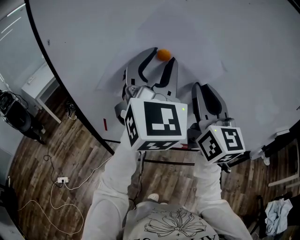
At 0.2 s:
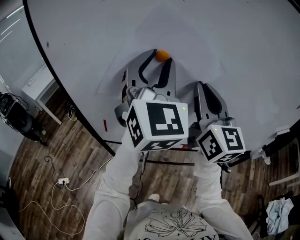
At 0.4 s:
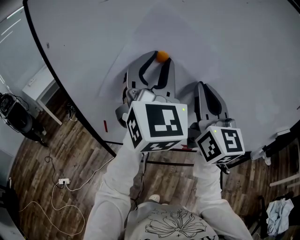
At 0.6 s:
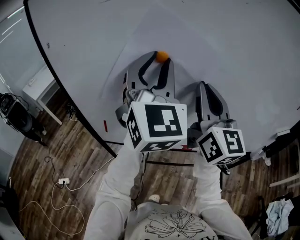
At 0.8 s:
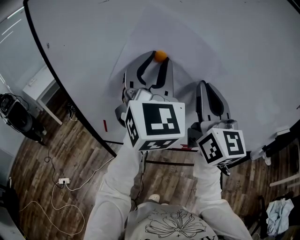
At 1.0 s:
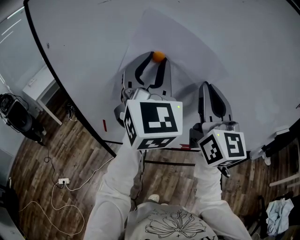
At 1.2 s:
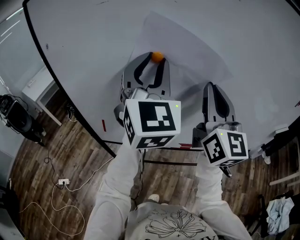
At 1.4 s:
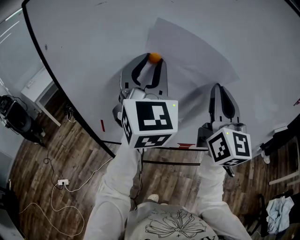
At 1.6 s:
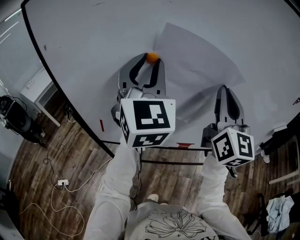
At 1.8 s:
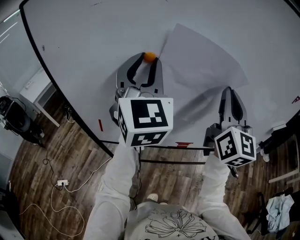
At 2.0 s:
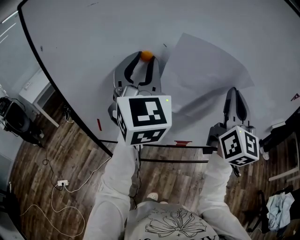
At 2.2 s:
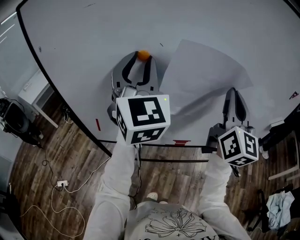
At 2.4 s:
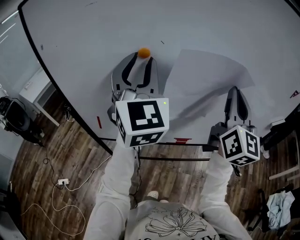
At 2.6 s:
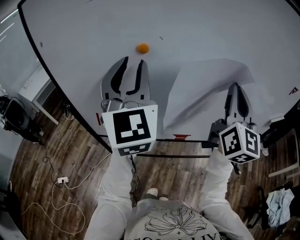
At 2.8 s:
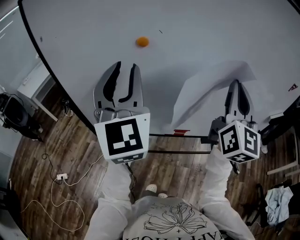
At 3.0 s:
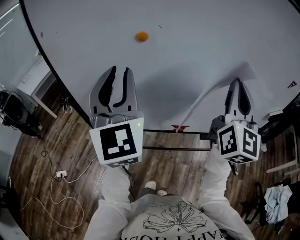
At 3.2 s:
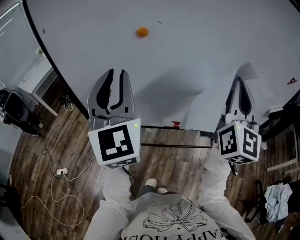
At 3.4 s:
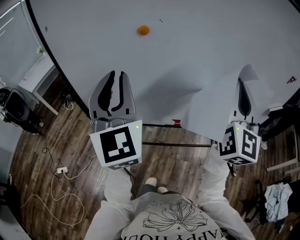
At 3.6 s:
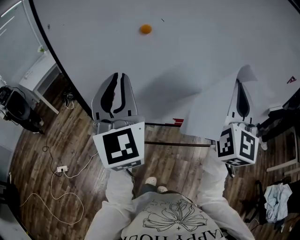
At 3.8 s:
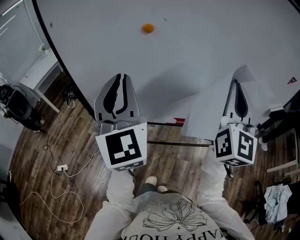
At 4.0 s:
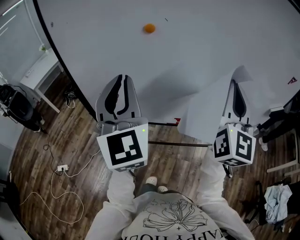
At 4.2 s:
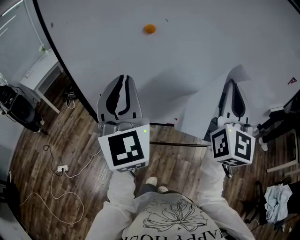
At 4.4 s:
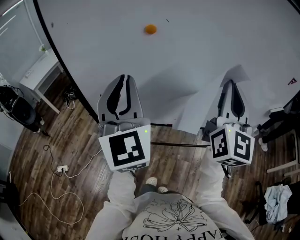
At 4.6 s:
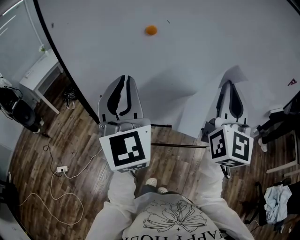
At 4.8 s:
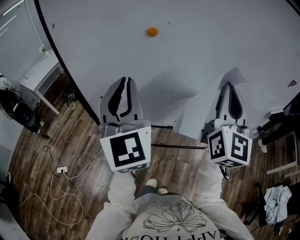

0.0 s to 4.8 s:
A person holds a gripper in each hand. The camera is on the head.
0.0 to 1.6 s: The right gripper moves to the right, approximately 10 cm.
1.6 to 3.2 s: The left gripper travels backward by roughly 10 cm, while the right gripper shifts some 10 cm backward and to the right.
3.2 to 4.8 s: The grippers stay close to where they were, moving slightly.

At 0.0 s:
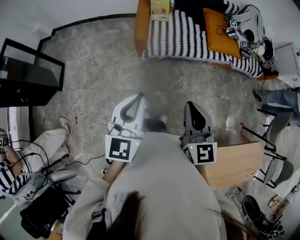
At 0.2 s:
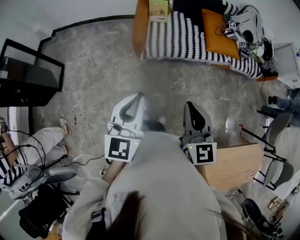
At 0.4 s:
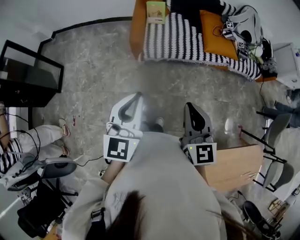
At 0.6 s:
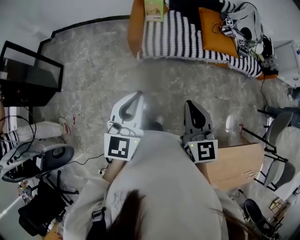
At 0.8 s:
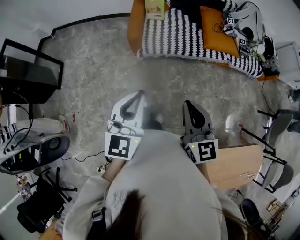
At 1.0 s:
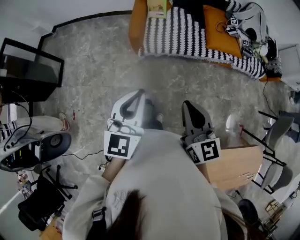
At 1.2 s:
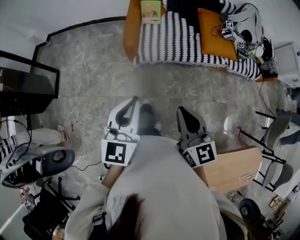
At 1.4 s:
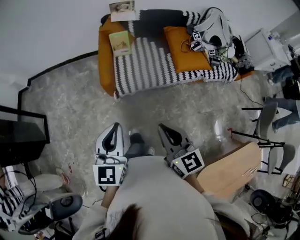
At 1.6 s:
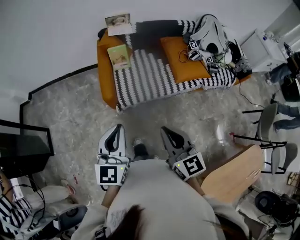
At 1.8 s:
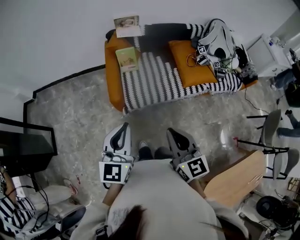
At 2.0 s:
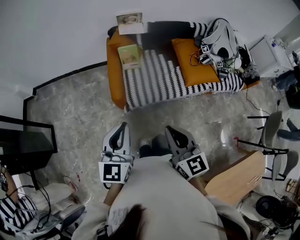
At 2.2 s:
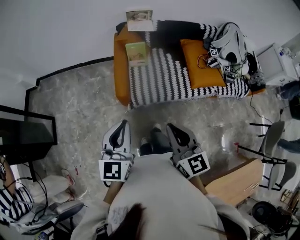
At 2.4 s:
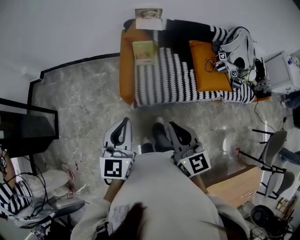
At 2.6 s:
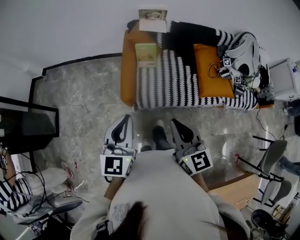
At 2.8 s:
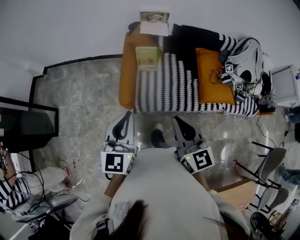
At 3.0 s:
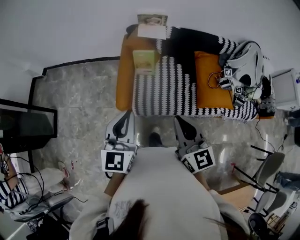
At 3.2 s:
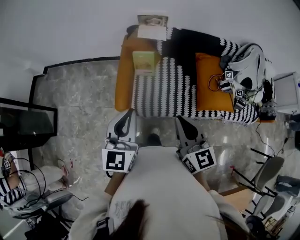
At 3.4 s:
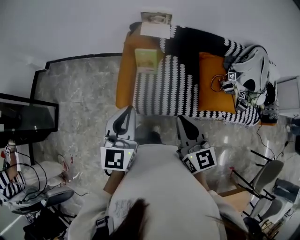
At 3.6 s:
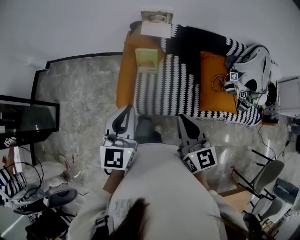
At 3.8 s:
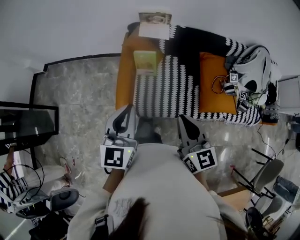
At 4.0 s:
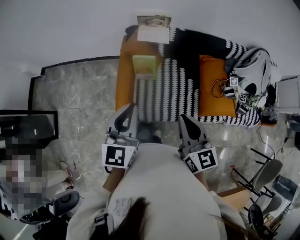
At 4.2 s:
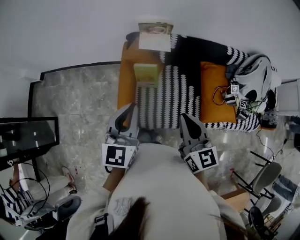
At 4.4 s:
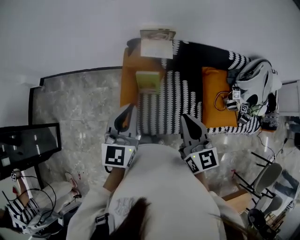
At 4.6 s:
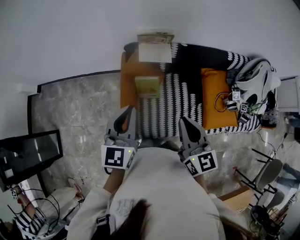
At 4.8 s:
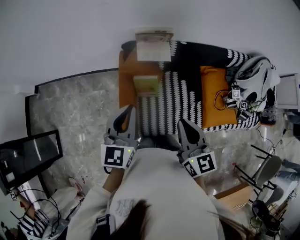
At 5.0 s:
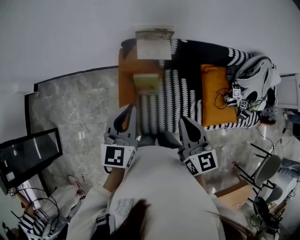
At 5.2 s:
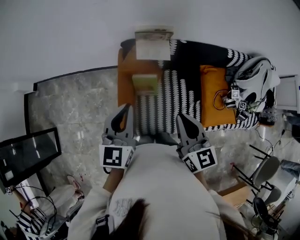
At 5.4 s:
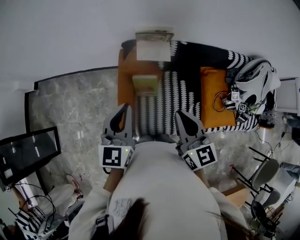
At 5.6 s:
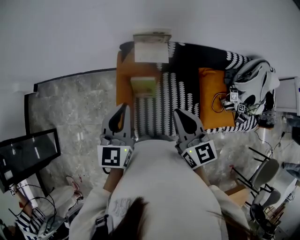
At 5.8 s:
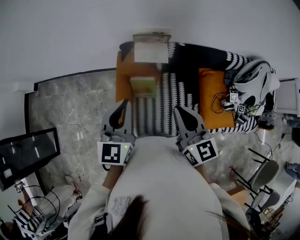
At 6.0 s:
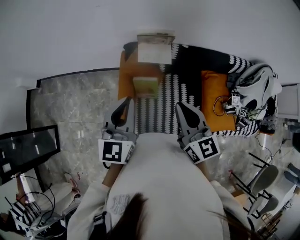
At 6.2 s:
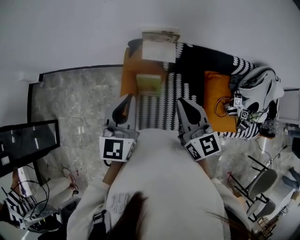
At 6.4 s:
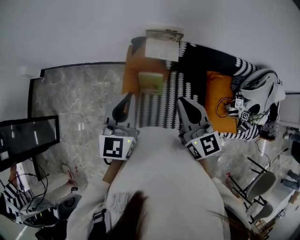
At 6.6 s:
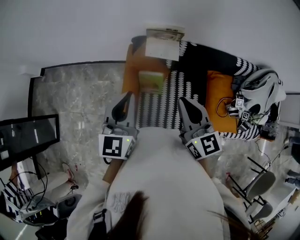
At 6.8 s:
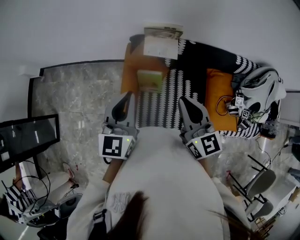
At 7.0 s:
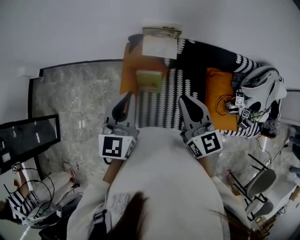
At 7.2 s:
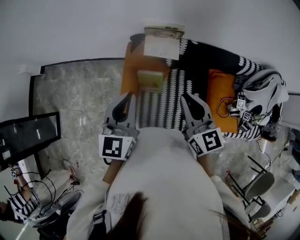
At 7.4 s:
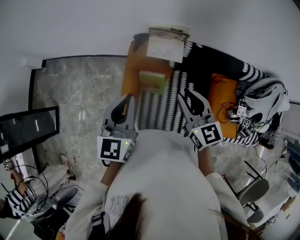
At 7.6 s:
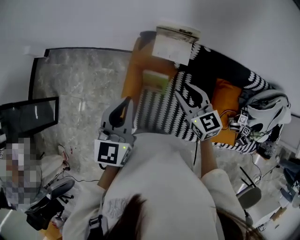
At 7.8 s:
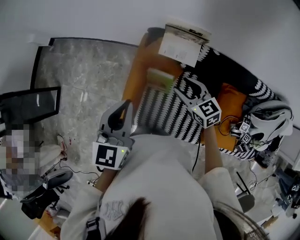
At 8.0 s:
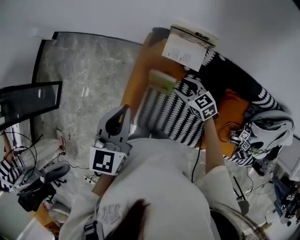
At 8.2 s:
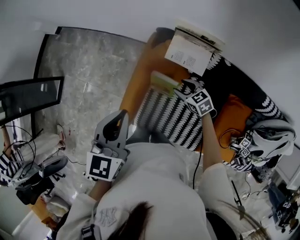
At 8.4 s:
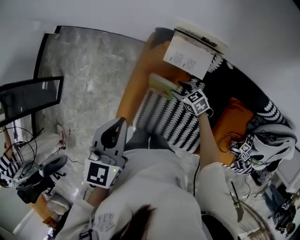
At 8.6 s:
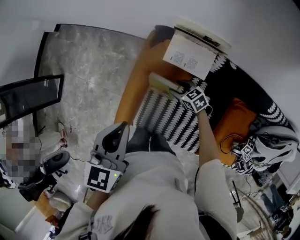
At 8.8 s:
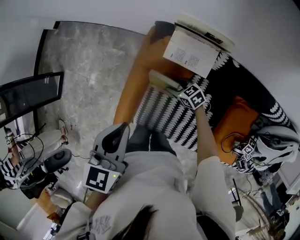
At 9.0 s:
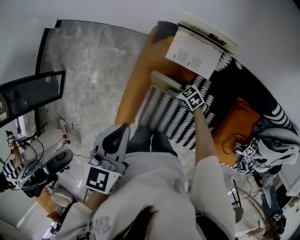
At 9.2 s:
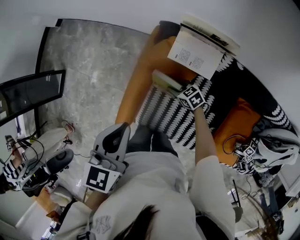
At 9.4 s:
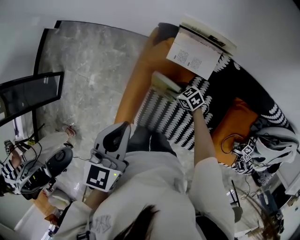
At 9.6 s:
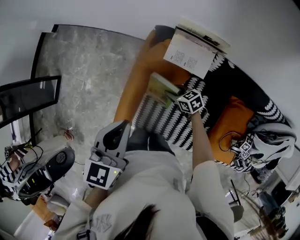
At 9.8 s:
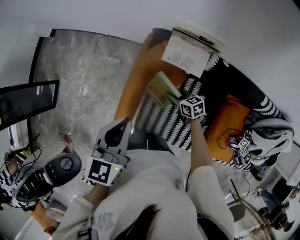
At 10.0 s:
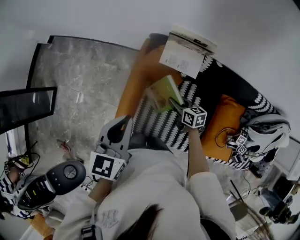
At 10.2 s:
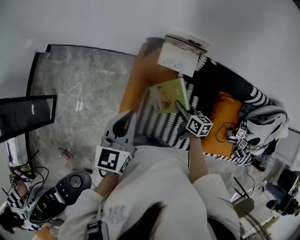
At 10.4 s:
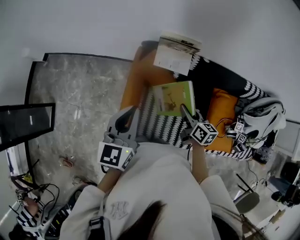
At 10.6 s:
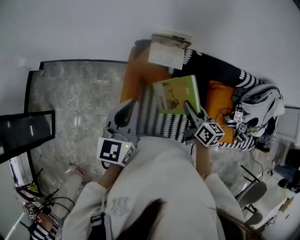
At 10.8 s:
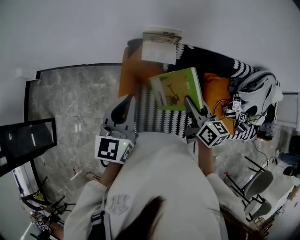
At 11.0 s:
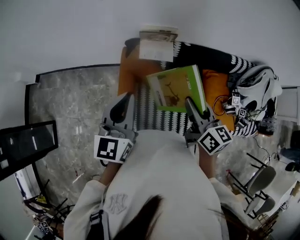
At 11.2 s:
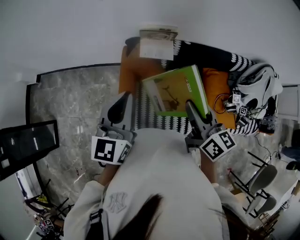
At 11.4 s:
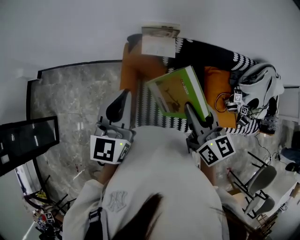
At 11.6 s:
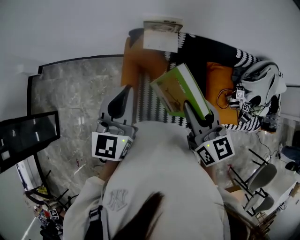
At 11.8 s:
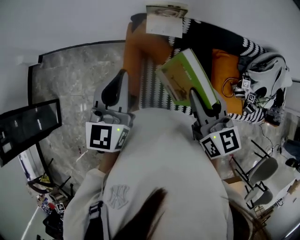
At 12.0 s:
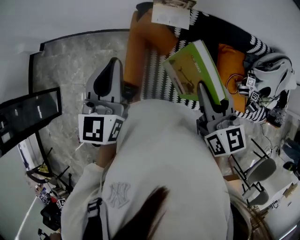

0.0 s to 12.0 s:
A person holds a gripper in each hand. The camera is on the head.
0.0 to 1.6 s: Both grippers move forward, approximately 15 cm.
1.6 to 3.0 s: The two grippers go roughly 25 cm forward.
3.0 to 4.4 s: Both grippers move forward, some 25 cm.
4.4 to 6.0 s: Both grippers move forward, roughly 10 cm.
6.0 to 7.6 s: The left gripper changes place by some 5 cm; the right gripper moves forward and downward, about 15 cm, rotates some 20 degrees, and opens.
7.6 to 9.0 s: The left gripper travels downward by approximately 10 cm, and turns by some 20 degrees; the right gripper heads downward, covering roughly 35 cm, and turns by about 40 degrees.
9.0 to 10.4 s: The left gripper moves upward, about 5 cm, and rotates about 20 degrees. The right gripper is displaced upward by some 25 cm, and swivels approximately 60 degrees.
10.4 to 12.0 s: The left gripper moves upward, some 5 cm. The right gripper moves upward and backward, roughly 25 cm, and turns by roughly 30 degrees.

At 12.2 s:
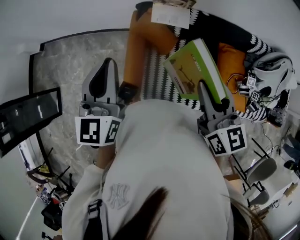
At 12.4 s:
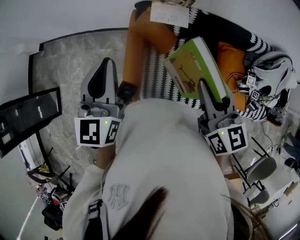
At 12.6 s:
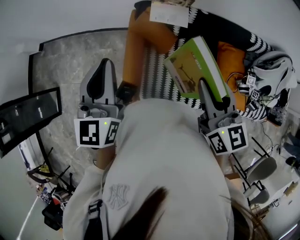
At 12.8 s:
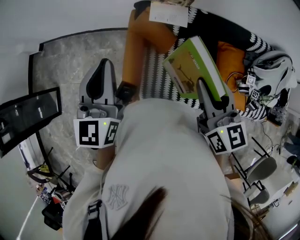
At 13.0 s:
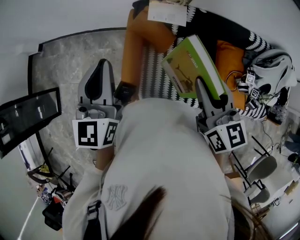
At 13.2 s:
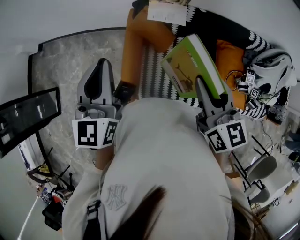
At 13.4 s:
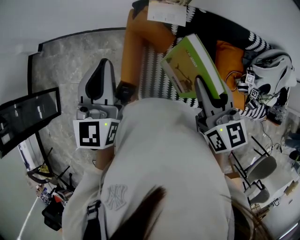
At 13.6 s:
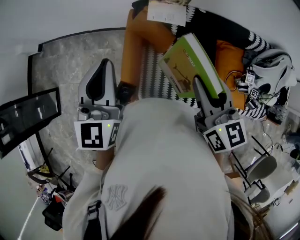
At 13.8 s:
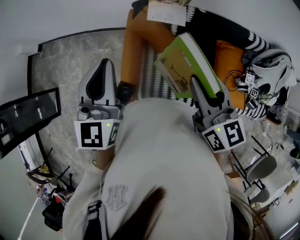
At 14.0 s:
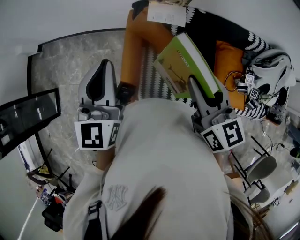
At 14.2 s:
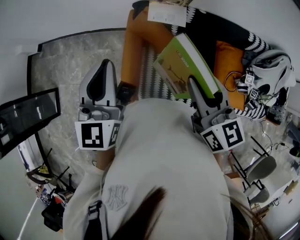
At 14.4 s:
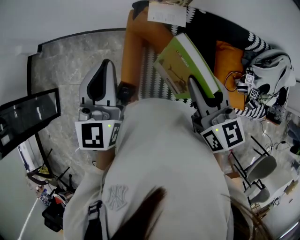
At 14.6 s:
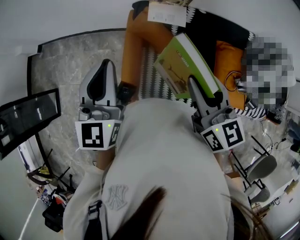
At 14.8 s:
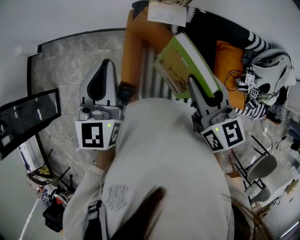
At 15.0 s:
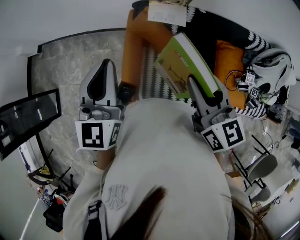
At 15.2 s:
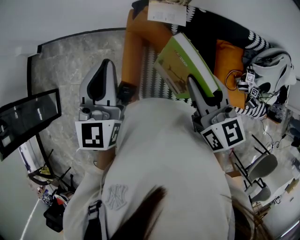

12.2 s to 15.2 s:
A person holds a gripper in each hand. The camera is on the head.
12.2 to 13.8 s: The grippers stay close to where they were, moving slightly.
13.8 to 15.2 s: Neither gripper changes place.

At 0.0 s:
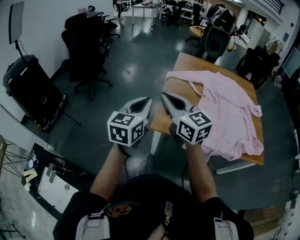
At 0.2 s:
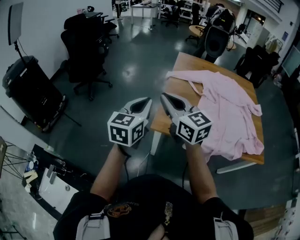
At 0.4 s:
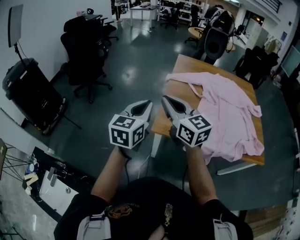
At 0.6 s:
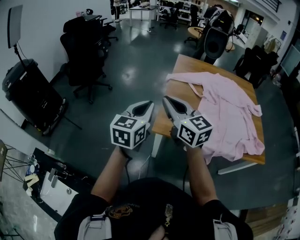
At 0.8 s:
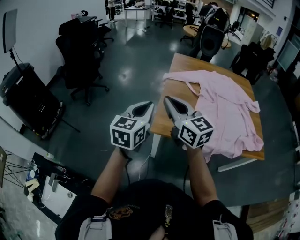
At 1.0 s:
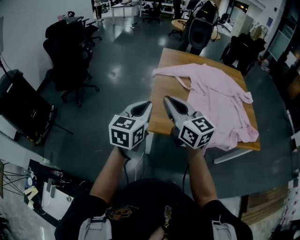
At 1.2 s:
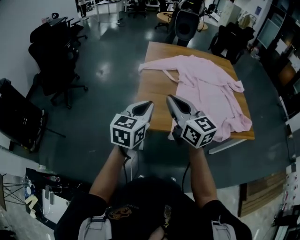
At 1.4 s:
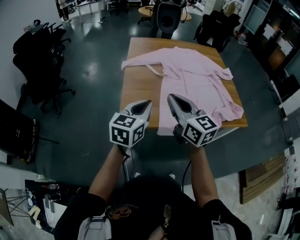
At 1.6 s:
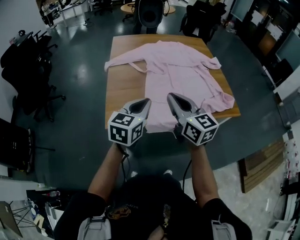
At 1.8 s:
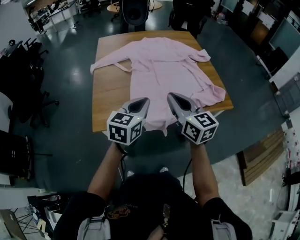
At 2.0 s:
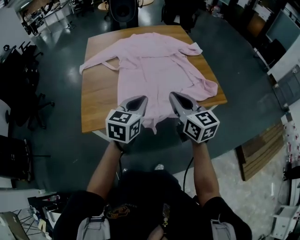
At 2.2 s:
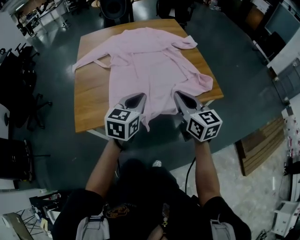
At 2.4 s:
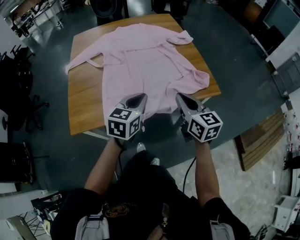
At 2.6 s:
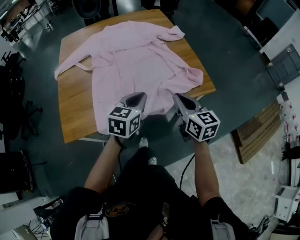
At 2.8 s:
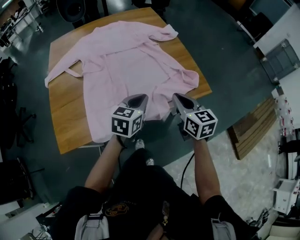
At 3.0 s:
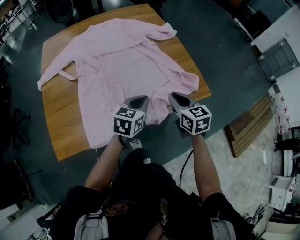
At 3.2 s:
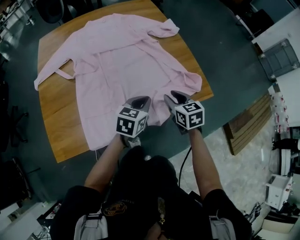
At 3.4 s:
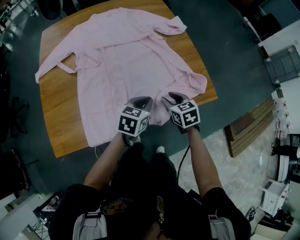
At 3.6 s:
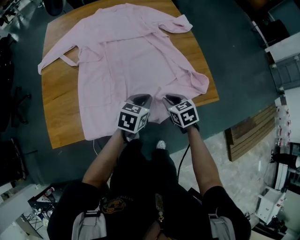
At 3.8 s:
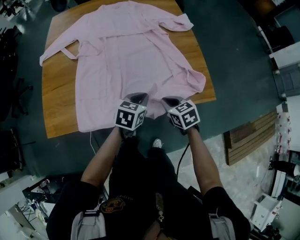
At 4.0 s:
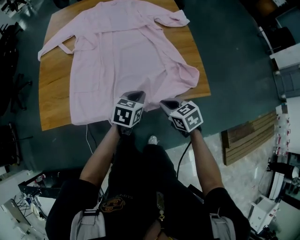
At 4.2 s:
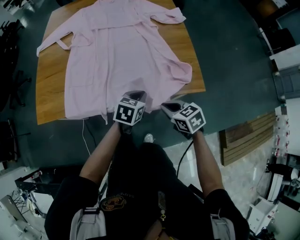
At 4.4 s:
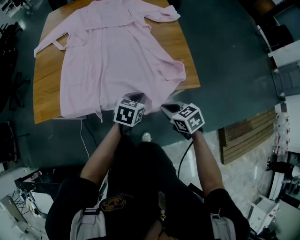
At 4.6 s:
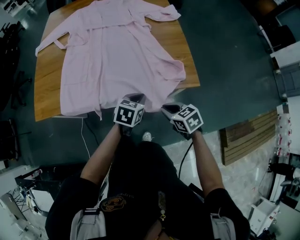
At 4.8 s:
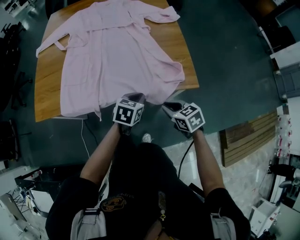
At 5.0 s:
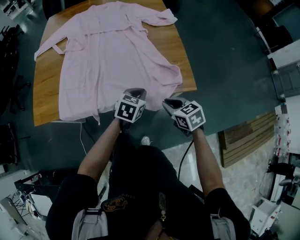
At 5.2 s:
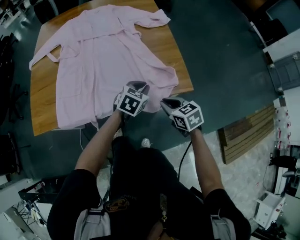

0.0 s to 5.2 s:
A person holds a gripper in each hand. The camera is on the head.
0.0 to 1.8 s: The left gripper shifts by about 35 cm, and changes its angle by approximately 30 degrees; the right gripper moves approximately 35 cm, and turns by some 30 degrees.
1.8 to 3.4 s: The left gripper is displaced to the right, forward and downward by about 35 cm, and rotates about 30 degrees. Meanwhile the right gripper moves downward, to the right and forward, roughly 40 cm, tips its fingers downward by roughly 40 degrees, and opens up.
3.4 to 5.2 s: The right gripper travels to the right and backward by some 15 cm, and closes. Meanwhile the left gripper moves to the right, about 15 cm.
